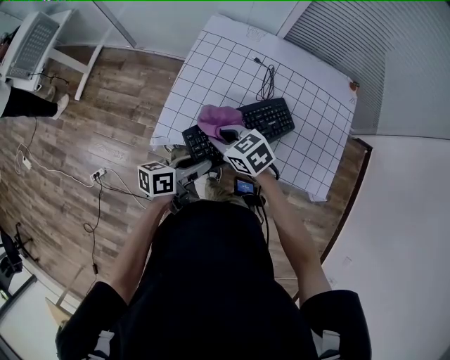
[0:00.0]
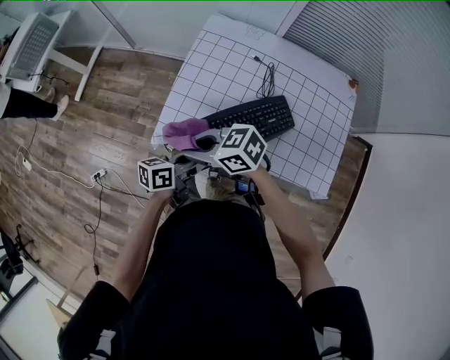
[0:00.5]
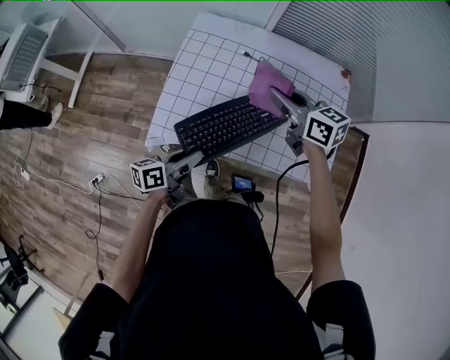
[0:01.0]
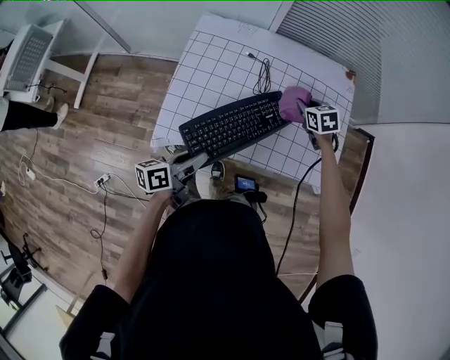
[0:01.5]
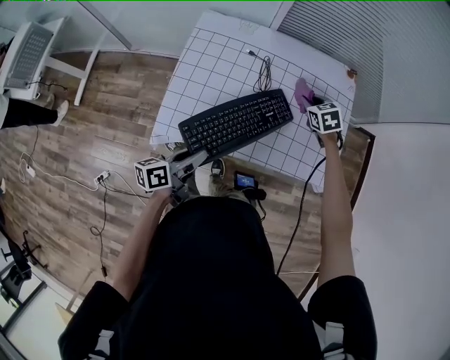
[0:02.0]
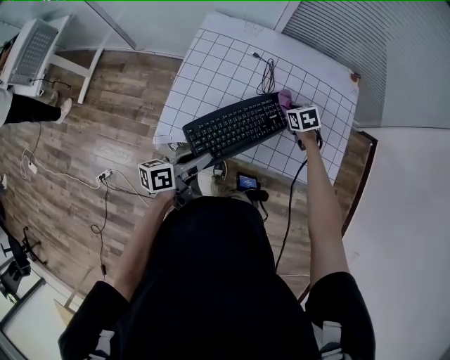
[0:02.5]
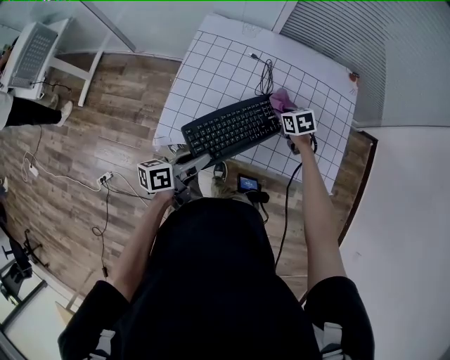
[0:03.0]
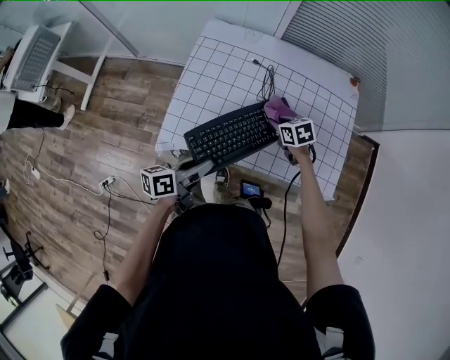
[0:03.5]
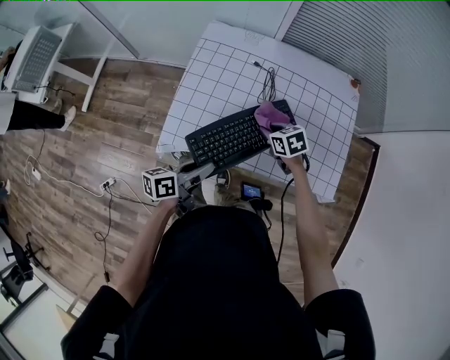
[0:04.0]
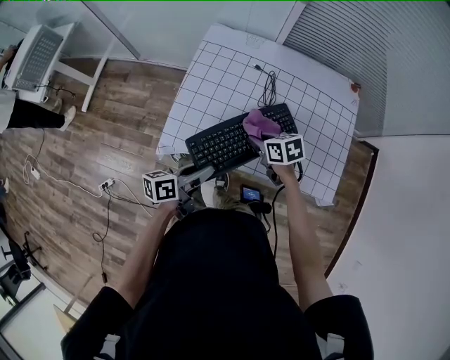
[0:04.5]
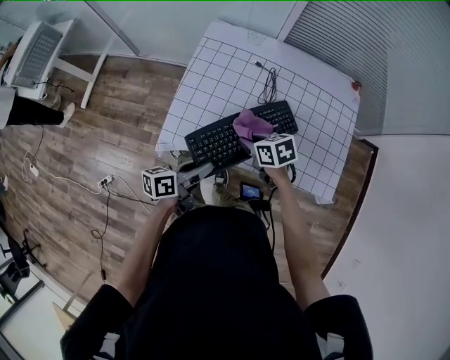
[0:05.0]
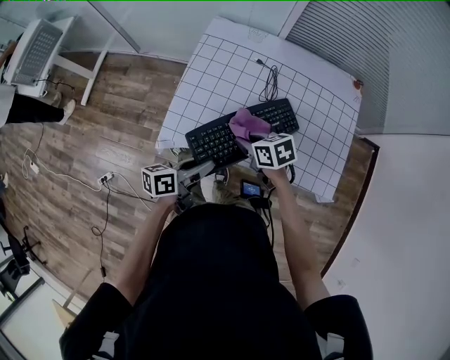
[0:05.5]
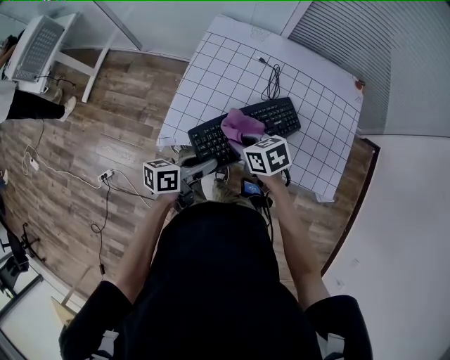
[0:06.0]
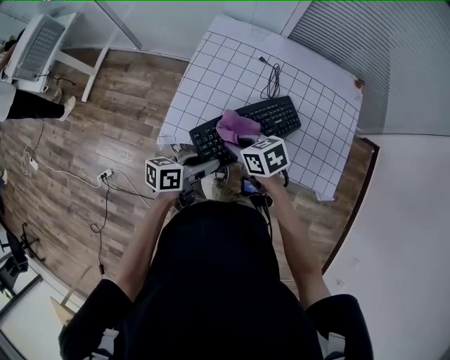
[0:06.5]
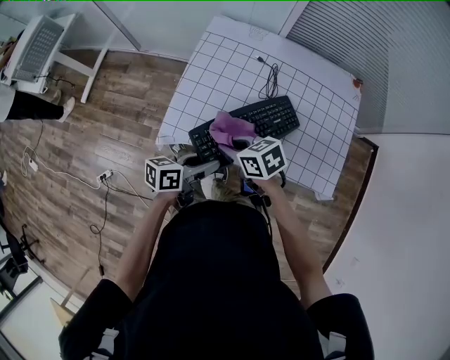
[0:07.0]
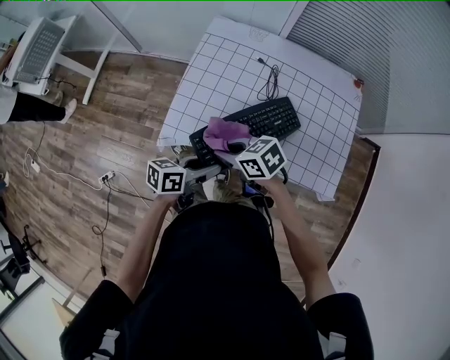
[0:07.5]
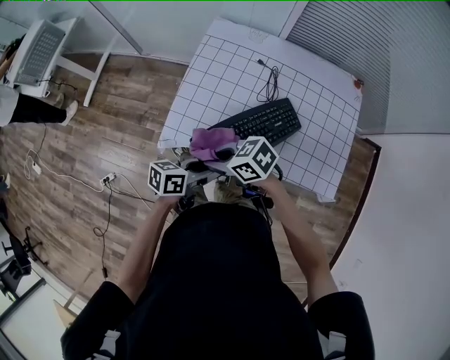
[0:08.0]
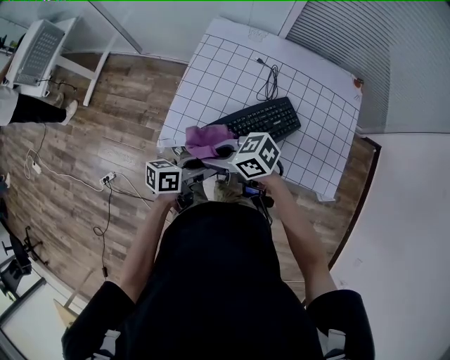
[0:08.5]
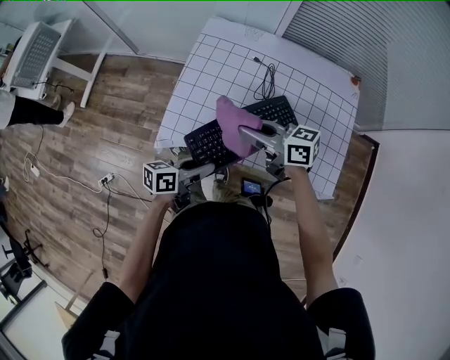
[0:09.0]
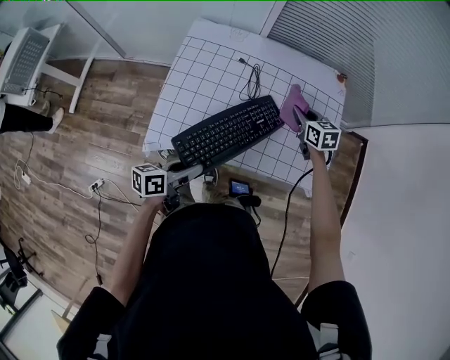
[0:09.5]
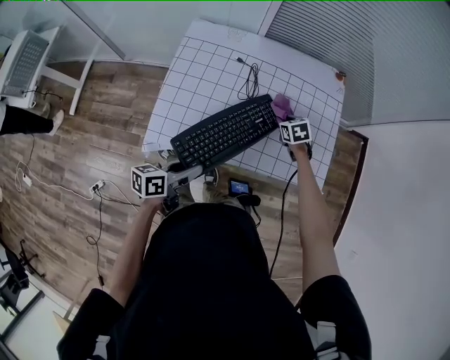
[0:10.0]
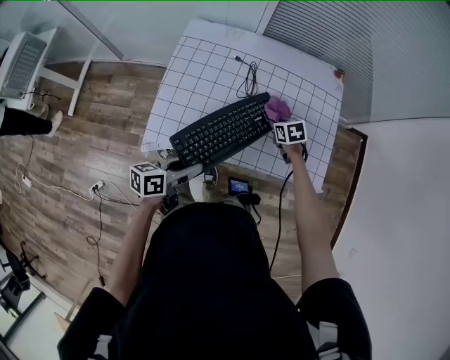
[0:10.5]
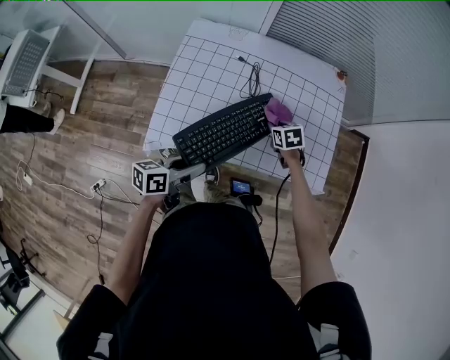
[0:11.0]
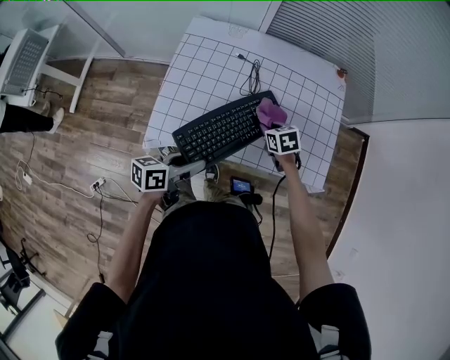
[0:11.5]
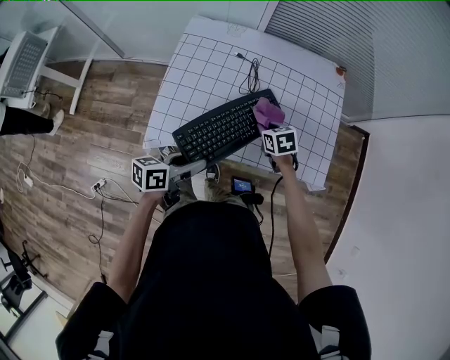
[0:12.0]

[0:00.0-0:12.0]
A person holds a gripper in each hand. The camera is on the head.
0:00.0 to 0:02.0: The right gripper travels upward and back again, some 10 cm each way, and turns by some 40 degrees.
0:02.0 to 0:04.0: The right gripper goes approximately 20 cm to the left and backward, and swivels roughly 20 degrees.
0:04.0 to 0:06.0: The right gripper goes some 15 cm to the left, upward and backward.
0:06.0 to 0:08.0: The right gripper shifts by some 10 cm, and turns by some 30 degrees.
0:08.0 to 0:10.0: The right gripper moves roughly 40 cm, and turns by approximately 60 degrees.
0:10.0 to 0:12.0: The right gripper heads backward and to the left, covering some 10 cm.

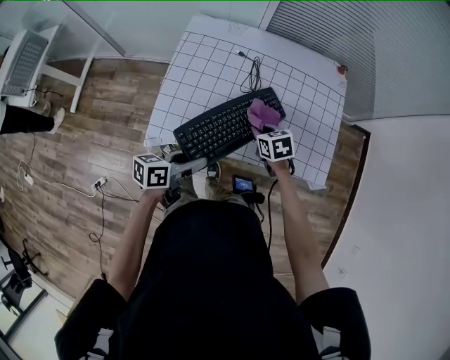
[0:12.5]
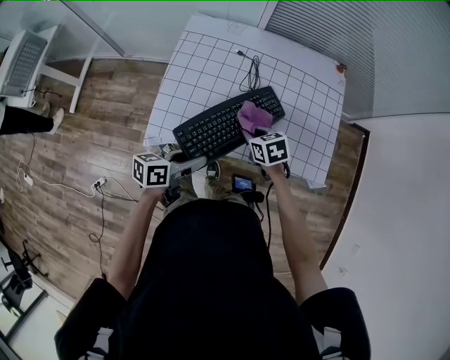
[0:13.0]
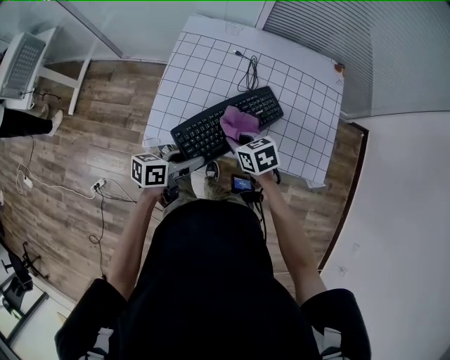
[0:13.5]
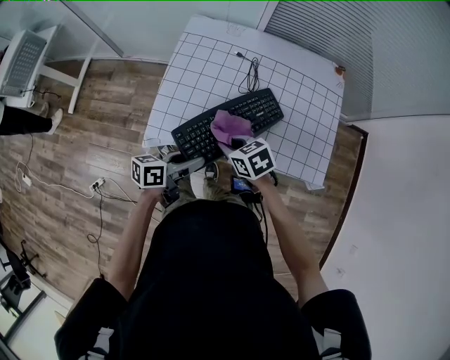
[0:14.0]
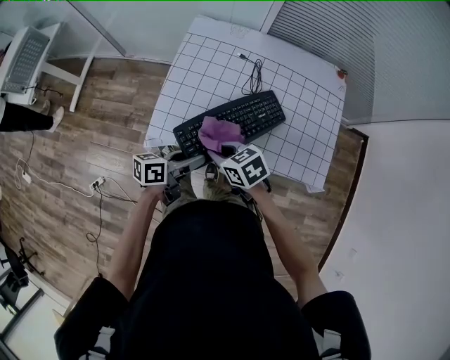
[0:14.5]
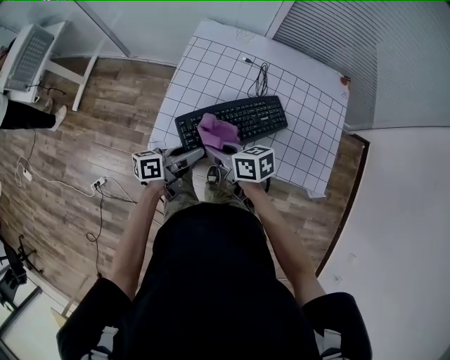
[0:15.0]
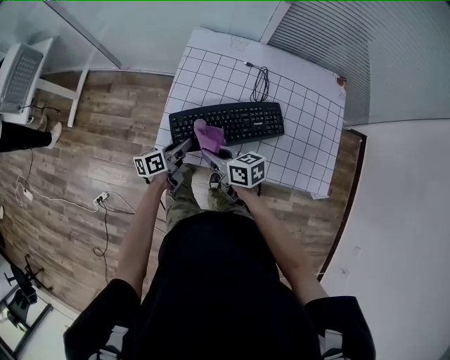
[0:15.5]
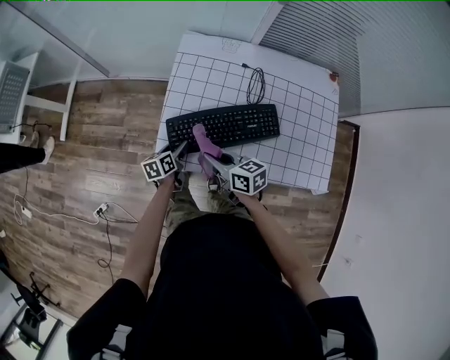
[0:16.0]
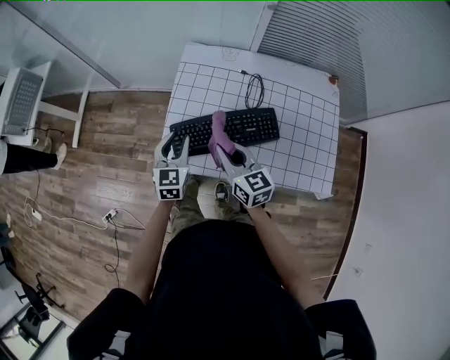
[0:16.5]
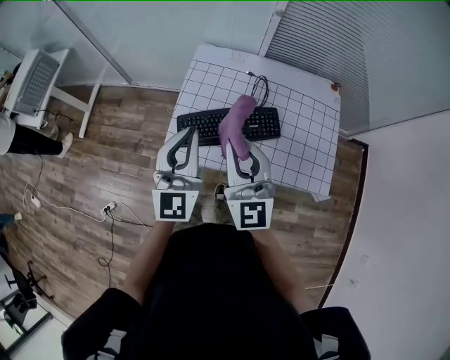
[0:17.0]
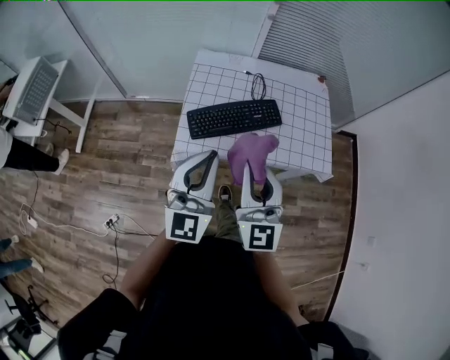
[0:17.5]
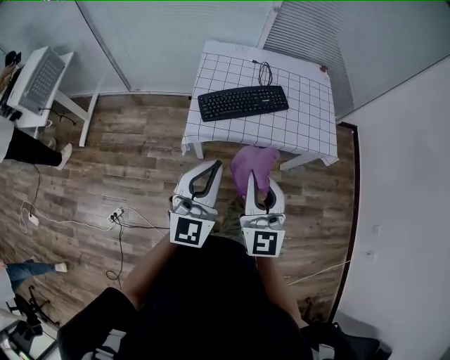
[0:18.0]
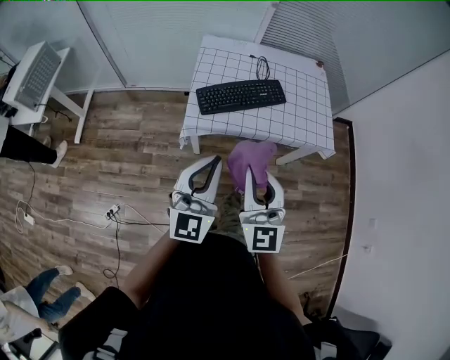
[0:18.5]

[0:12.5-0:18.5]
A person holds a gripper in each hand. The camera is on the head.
0:12.5 to 0:14.5: The right gripper moves to the left, backward and upward, approximately 20 cm, and changes its angle by about 20 degrees.
0:14.5 to 0:16.5: The right gripper moves forward and upward, about 10 cm, and turns by approximately 40 degrees. The left gripper moves forward and to the left, some 20 cm, moves some 15 cm downward and comes back, changes its angle by approximately 70 degrees, and opens, then closes once more.
0:16.5 to 0:18.5: The right gripper moves approximately 40 cm, and rotates roughly 50 degrees; the left gripper moves approximately 40 cm, tilts its fingers about 30 degrees upward, and closes.

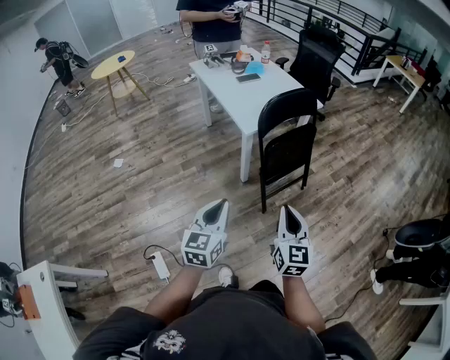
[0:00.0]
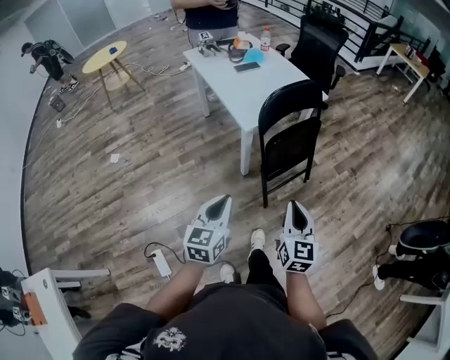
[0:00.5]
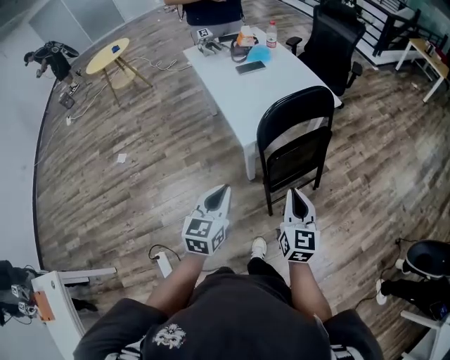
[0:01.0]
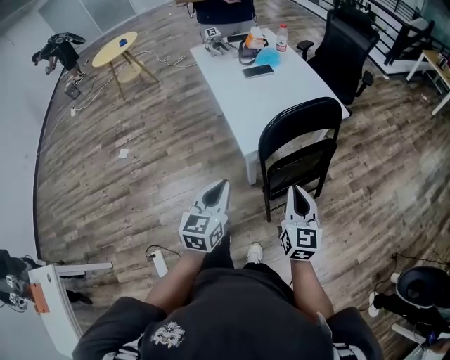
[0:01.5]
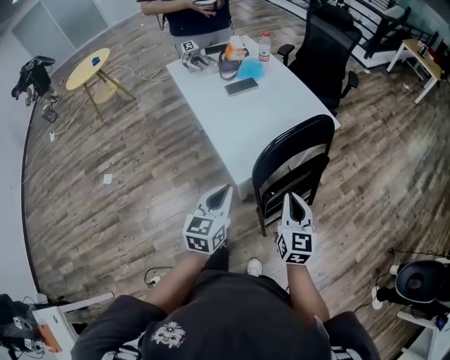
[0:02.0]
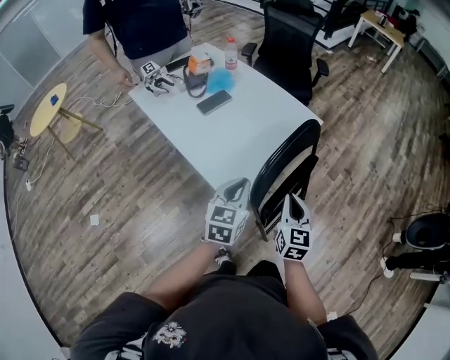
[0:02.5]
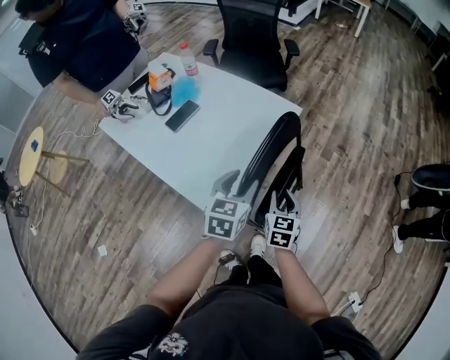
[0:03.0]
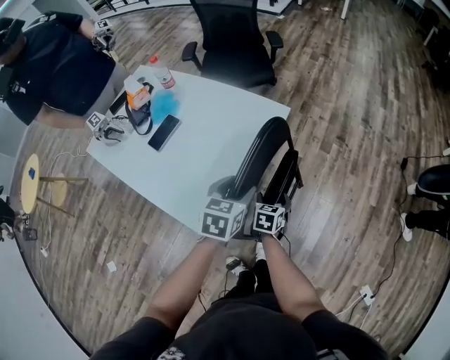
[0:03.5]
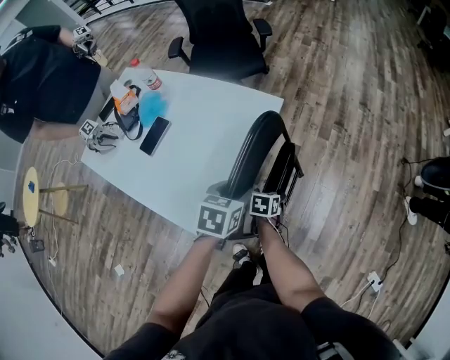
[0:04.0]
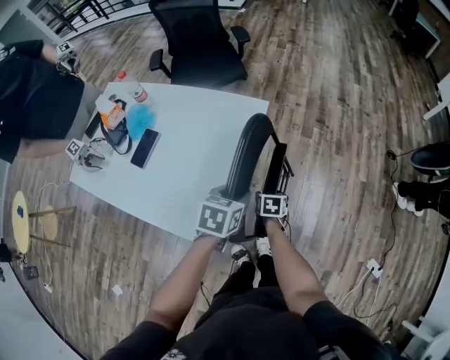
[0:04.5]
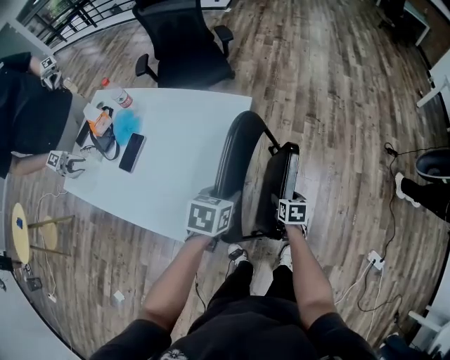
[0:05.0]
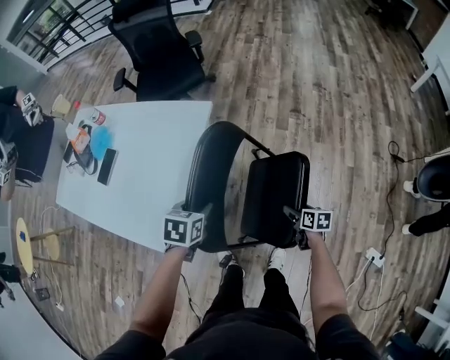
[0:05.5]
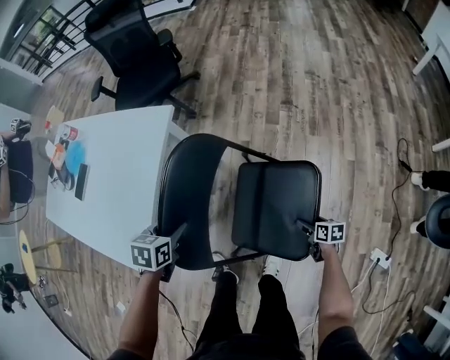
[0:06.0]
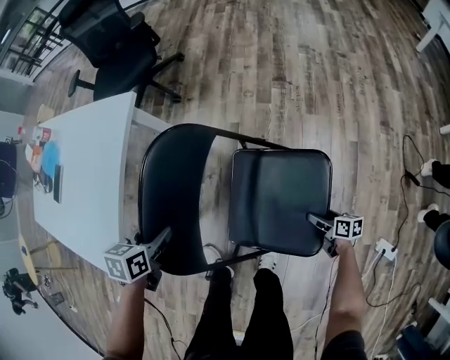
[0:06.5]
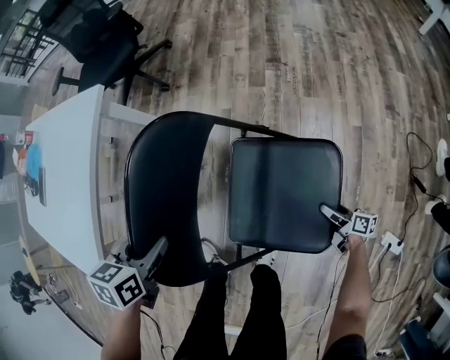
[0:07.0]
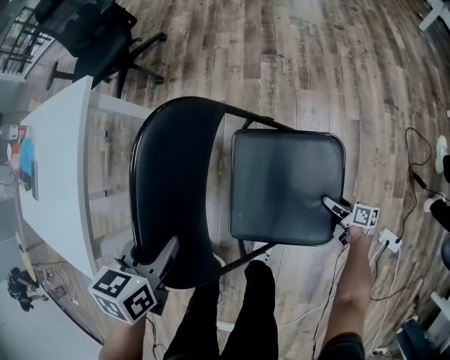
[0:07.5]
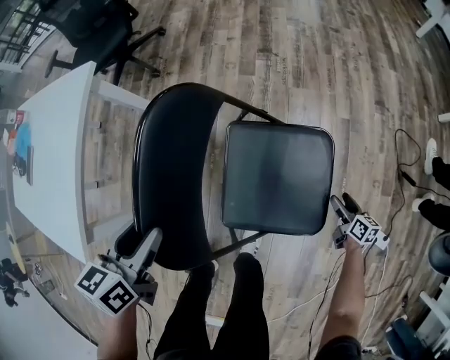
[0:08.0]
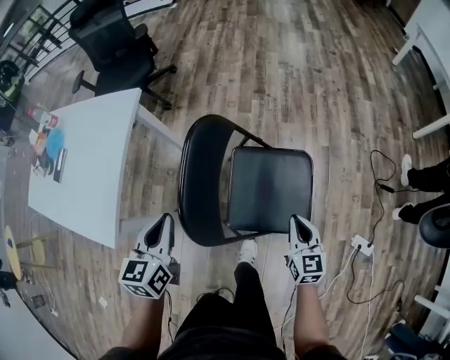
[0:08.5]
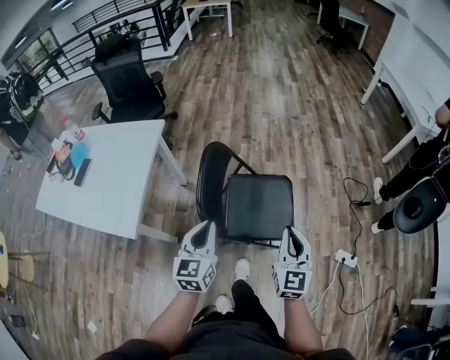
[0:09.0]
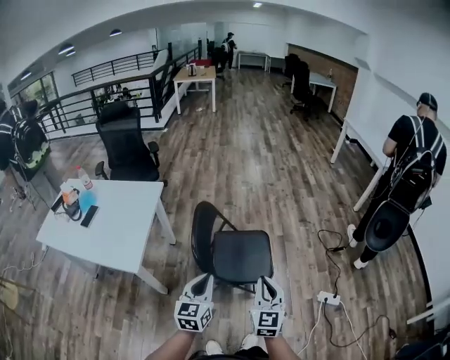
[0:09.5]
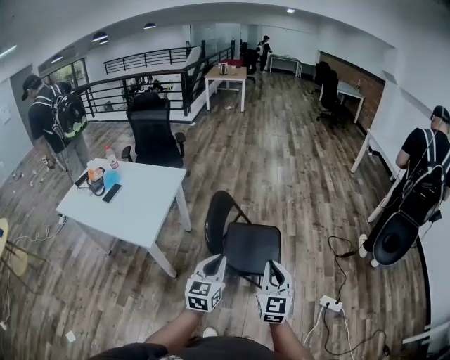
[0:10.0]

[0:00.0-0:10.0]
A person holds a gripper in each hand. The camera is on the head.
0:00.0 to 0:02.0: The two grippers travel together, forward, some 40 cm.
0:02.0 to 0:04.0: The left gripper shifts by approximately 30 cm, points its fingers some 30 degrees further downward, and opens its fingers; the right gripper moves downward, approximately 30 cm, tilts its fingers about 50 degrees downward, and opens its fingers.
0:04.0 to 0:06.0: The left gripper shifts approximately 20 cm downward and to the right. Meanwhile the right gripper heads to the right, covering about 50 cm, and changes its angle by some 30 degrees.
0:06.0 to 0:08.0: The left gripper goes about 15 cm to the right, while the right gripper shifts some 30 cm to the right and downward, and swivels about 20 degrees.
0:08.0 to 0:10.0: The right gripper heads upward and backward, covering some 80 cm, angles its fingers upward, by some 30 degrees, and closes. The left gripper travels backward and upward by some 50 cm, tips its fingers upward by some 30 degrees, and closes its fingers.
